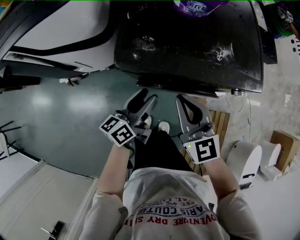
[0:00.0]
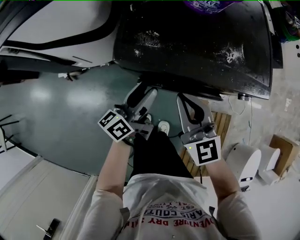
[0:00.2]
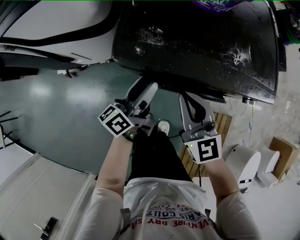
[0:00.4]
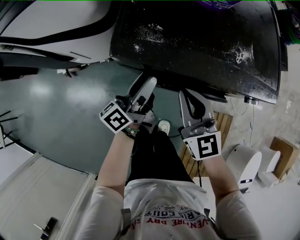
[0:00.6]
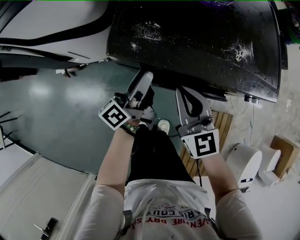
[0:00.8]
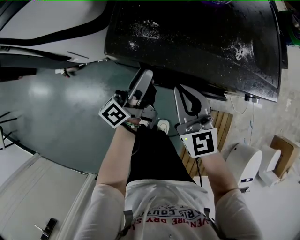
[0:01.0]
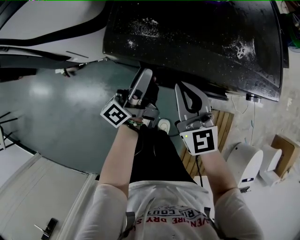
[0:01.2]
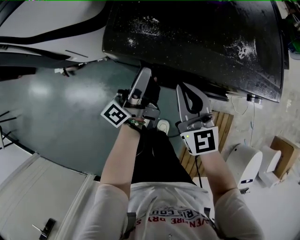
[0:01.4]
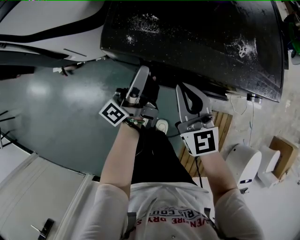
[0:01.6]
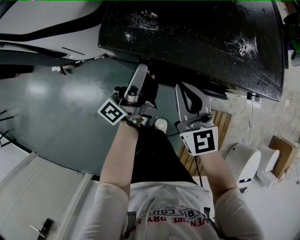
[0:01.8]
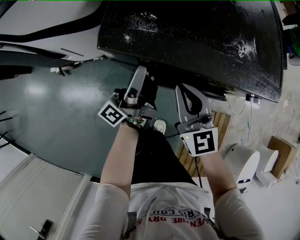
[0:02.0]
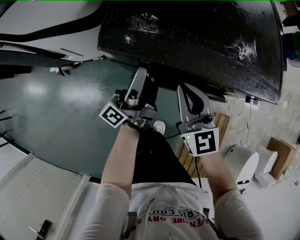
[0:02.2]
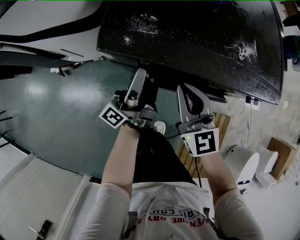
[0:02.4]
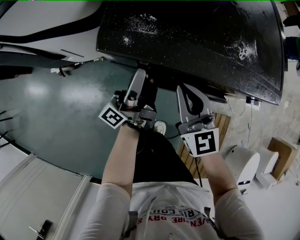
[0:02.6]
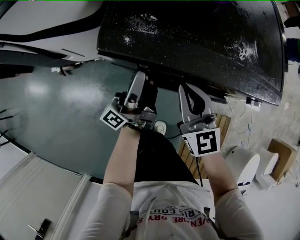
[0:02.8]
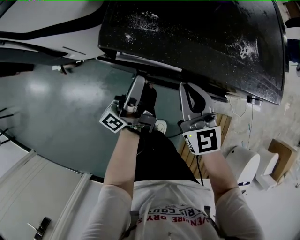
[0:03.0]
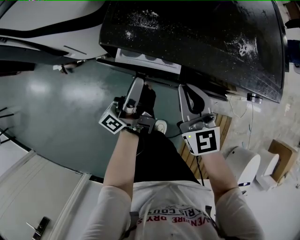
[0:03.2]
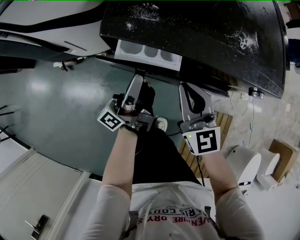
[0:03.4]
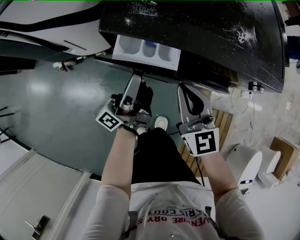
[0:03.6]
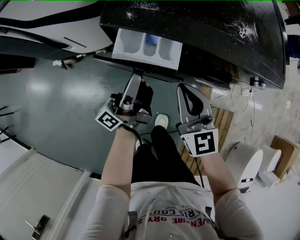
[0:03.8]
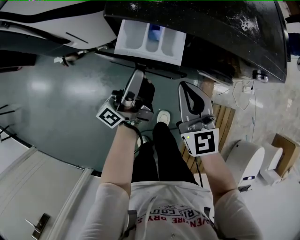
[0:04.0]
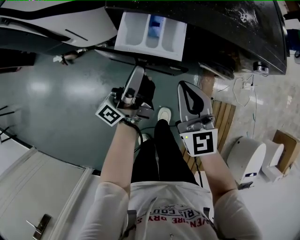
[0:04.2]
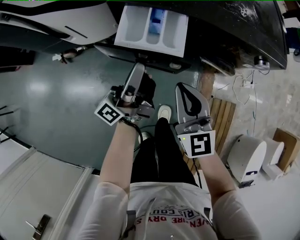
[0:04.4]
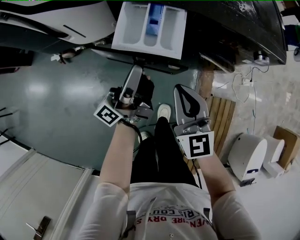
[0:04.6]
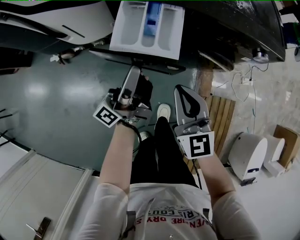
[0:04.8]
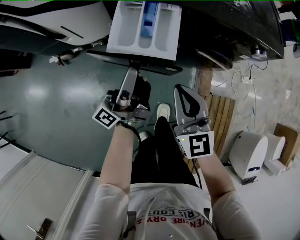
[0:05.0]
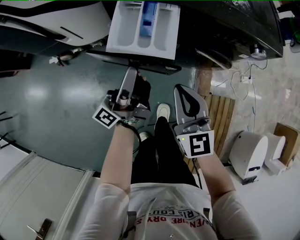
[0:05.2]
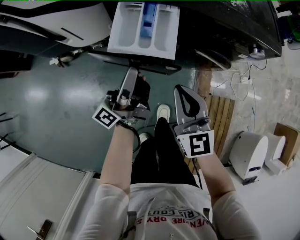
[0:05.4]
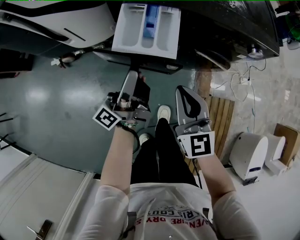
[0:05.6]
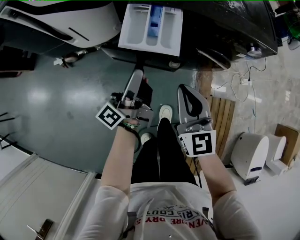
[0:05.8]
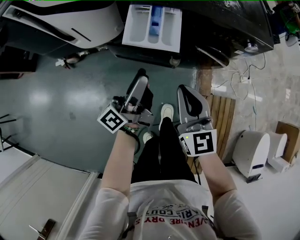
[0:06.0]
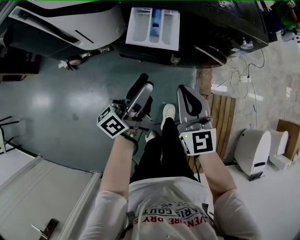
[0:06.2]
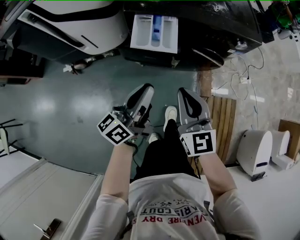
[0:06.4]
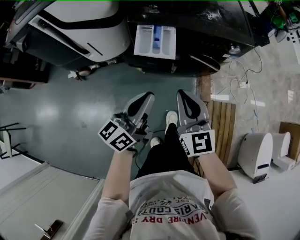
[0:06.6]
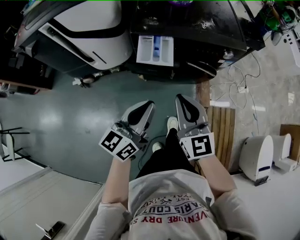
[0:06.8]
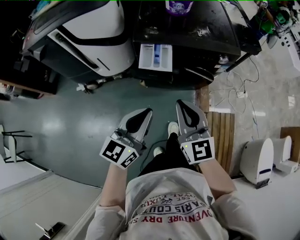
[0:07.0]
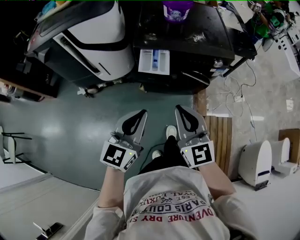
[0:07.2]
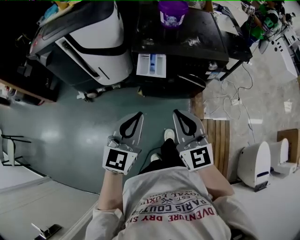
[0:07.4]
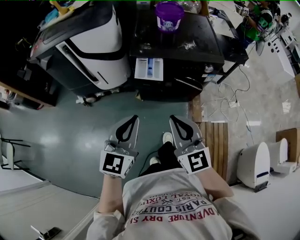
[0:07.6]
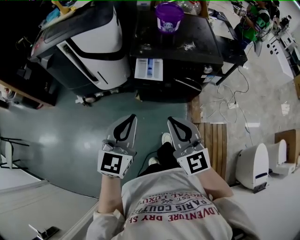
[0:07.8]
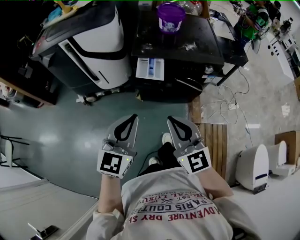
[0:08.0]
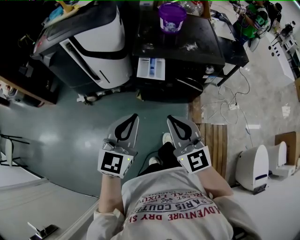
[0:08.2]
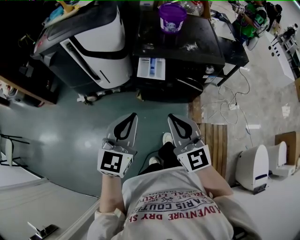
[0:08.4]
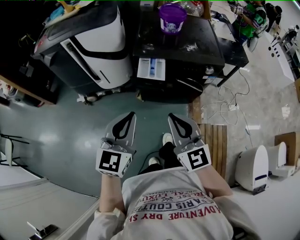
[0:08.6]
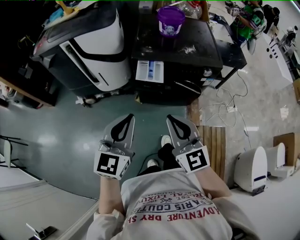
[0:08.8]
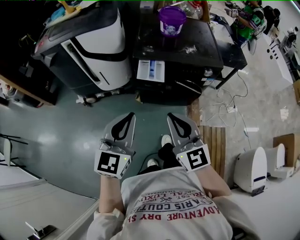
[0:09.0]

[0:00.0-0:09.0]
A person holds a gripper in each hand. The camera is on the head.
0:00.0 to 0:01.6: The right gripper goes about 10 cm downward. Meanwhile the left gripper travels forward by roughly 5 cm, and rotates some 40 degrees.
0:01.6 to 0:03.0: There are only small adjustments of the grippers.
0:03.0 to 0:04.4: The grippers both shift backward by some 10 cm.
0:04.4 to 0:06.0: Both grippers travel together backward, some 5 cm. The left gripper opens its fingers.
0:06.0 to 0:07.6: The grippers both shift upward and backward by some 30 cm. The left gripper twists approximately 80 degrees clockwise, seen from behind, and closes.
0:07.6 to 0:09.0: The grippers stay close to where they were, moving slightly.

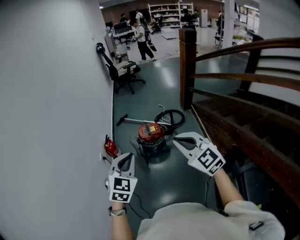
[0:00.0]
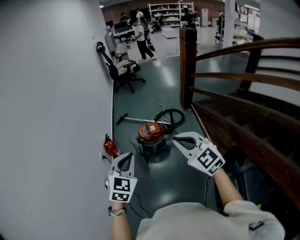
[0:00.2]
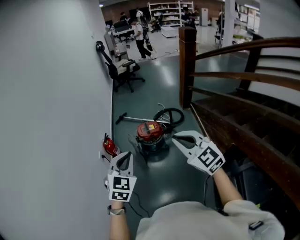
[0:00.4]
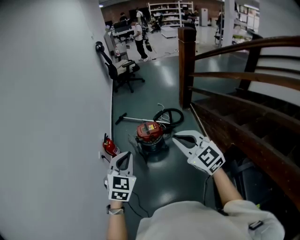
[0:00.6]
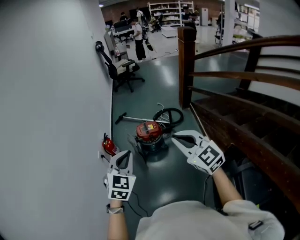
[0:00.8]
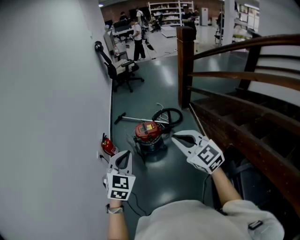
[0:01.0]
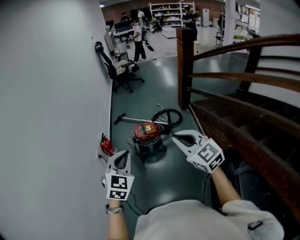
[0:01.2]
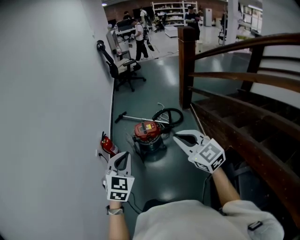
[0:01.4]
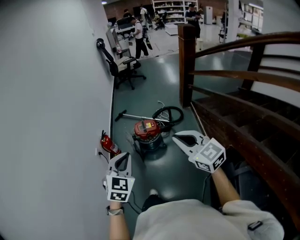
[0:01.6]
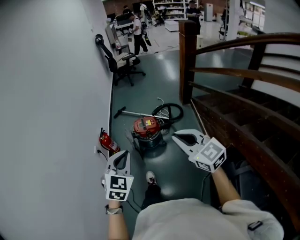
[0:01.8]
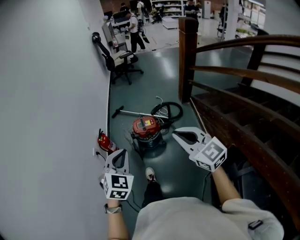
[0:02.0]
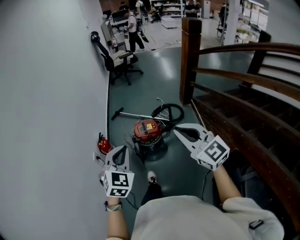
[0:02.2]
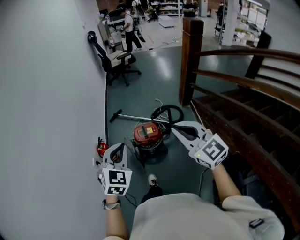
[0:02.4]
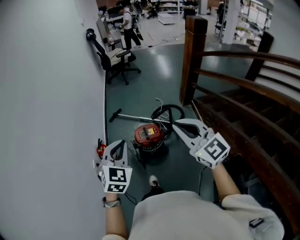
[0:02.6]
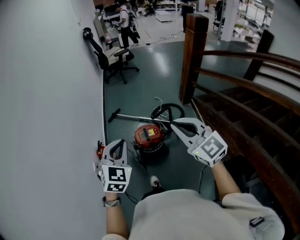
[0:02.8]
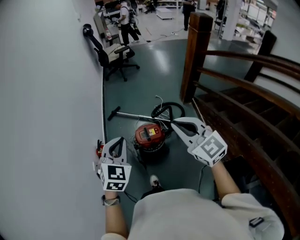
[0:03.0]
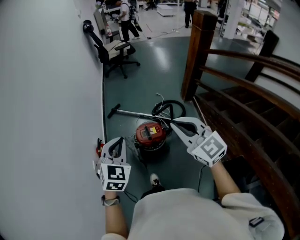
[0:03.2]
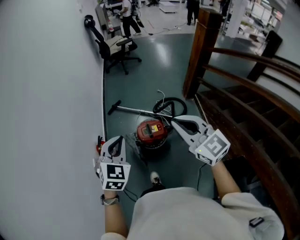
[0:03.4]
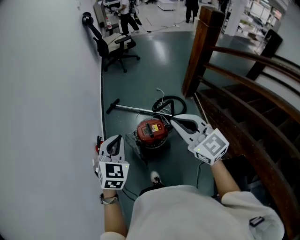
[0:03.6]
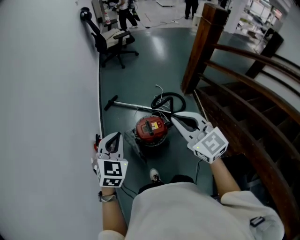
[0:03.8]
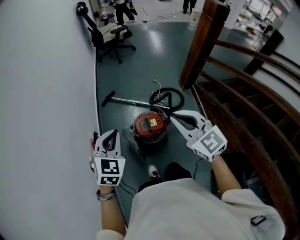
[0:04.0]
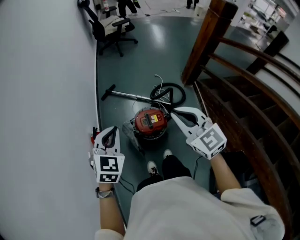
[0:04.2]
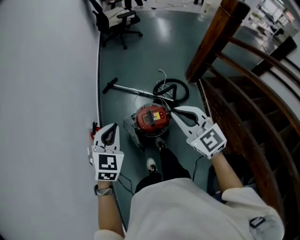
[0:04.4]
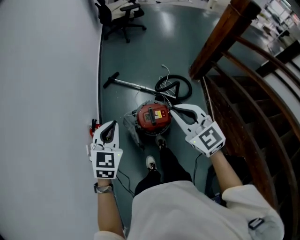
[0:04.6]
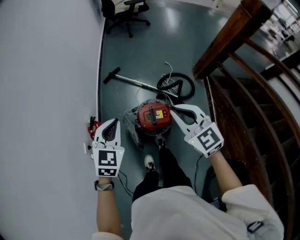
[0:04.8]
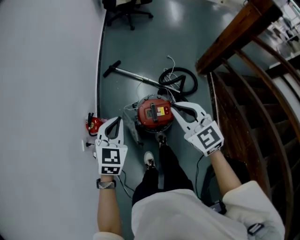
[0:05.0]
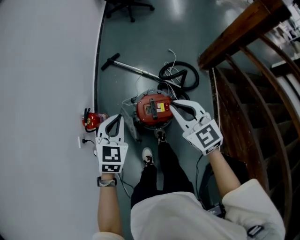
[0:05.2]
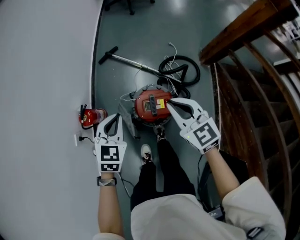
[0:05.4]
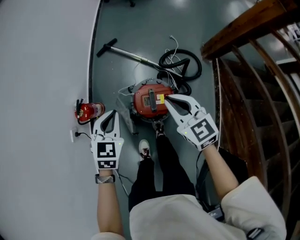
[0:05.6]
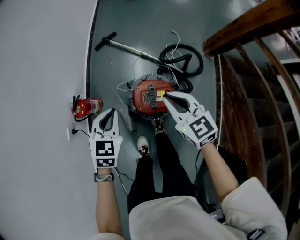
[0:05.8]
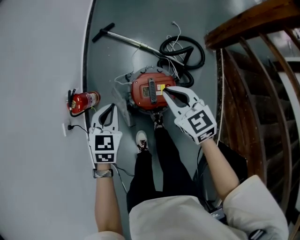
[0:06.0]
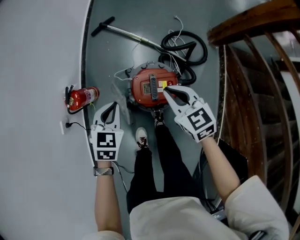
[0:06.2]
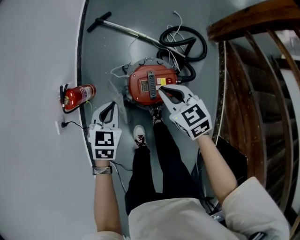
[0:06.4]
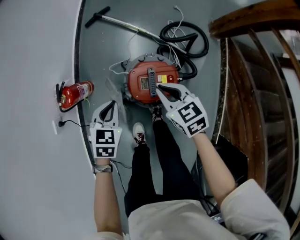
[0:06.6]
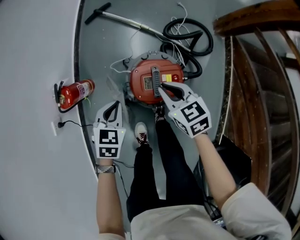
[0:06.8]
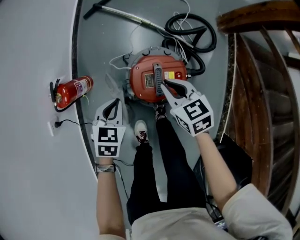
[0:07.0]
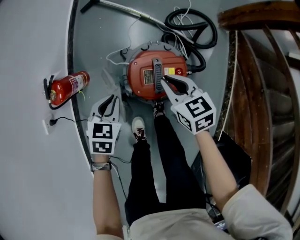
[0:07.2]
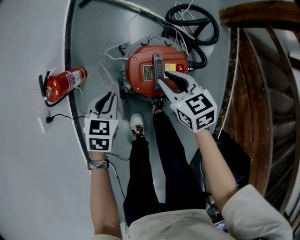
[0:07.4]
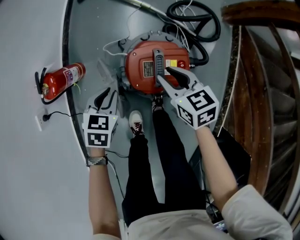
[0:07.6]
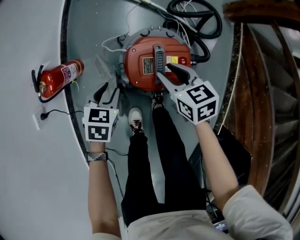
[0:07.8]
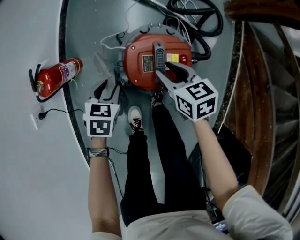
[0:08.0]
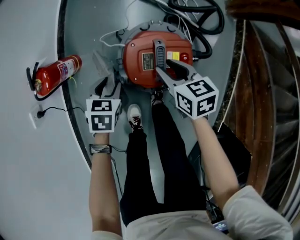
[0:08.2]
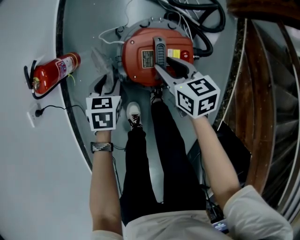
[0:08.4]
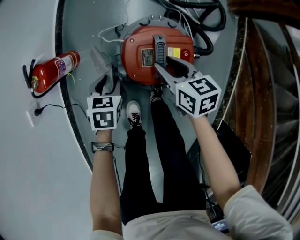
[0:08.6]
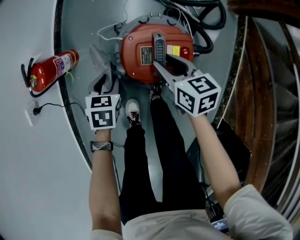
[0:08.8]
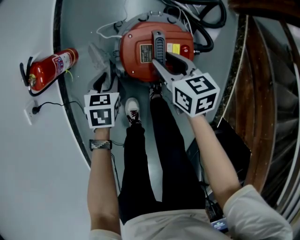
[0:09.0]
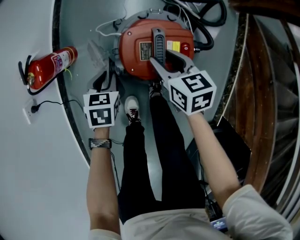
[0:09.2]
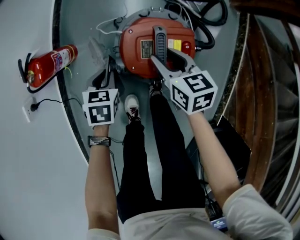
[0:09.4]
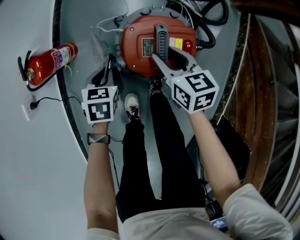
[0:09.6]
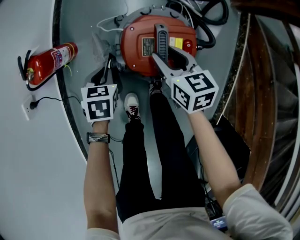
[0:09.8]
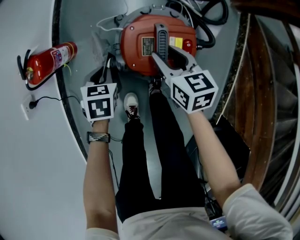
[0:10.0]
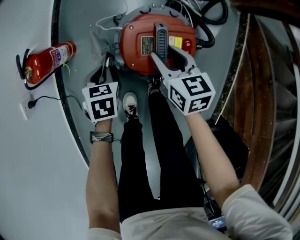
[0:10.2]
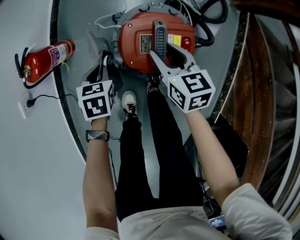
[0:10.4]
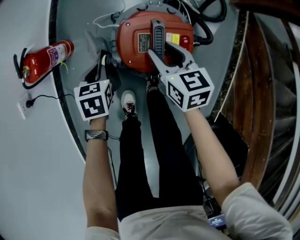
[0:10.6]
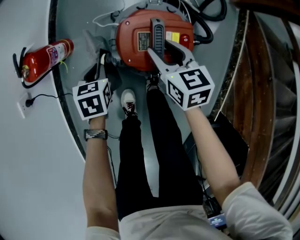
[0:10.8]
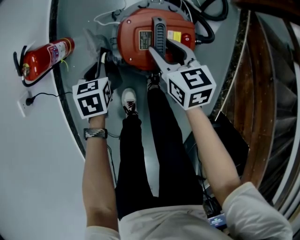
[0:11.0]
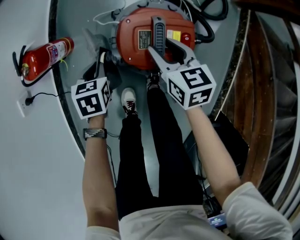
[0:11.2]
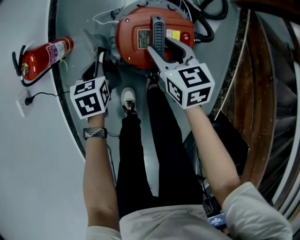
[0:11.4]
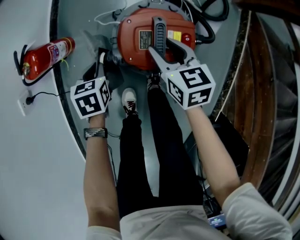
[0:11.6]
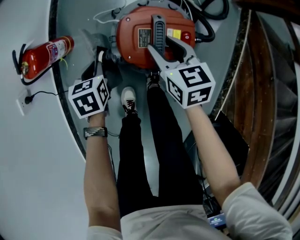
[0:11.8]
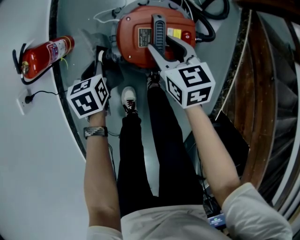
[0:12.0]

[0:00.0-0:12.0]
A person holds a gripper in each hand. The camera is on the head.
0:00.0 to 0:01.6: The right gripper heads to the right, covering about 5 cm.
0:01.6 to 0:03.0: The grippers both shift forward by roughly 30 cm.
0:03.0 to 0:04.4: The right gripper goes roughly 20 cm forward and downward. Meanwhile the left gripper travels forward, downward and to the left by about 20 cm.
0:04.4 to 0:06.0: The grippers both shift downward by about 30 cm. The right gripper rotates some 20 degrees. The left gripper rotates approximately 20 degrees.
0:06.0 to 0:07.6: The grippers both shift downward by roughly 25 cm. The right gripper changes its angle by some 20 degrees, and opens up.
0:07.6 to 0:09.0: The grippers both shift downward by some 5 cm.
0:09.0 to 0:10.4: The left gripper closes.
0:10.4 to 0:12.0: There are only small adjustments of the grippers.

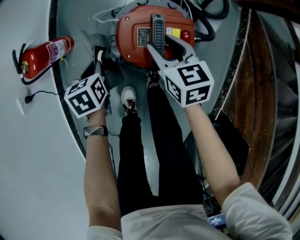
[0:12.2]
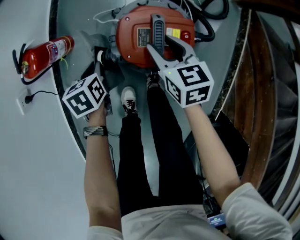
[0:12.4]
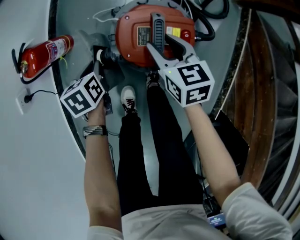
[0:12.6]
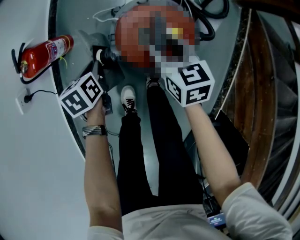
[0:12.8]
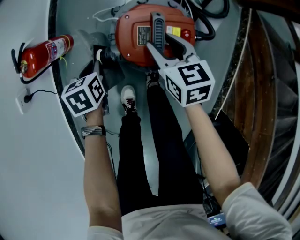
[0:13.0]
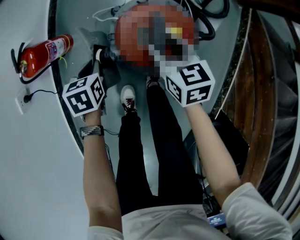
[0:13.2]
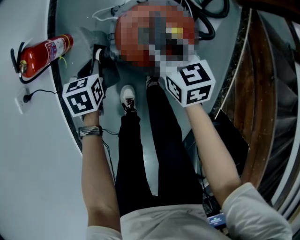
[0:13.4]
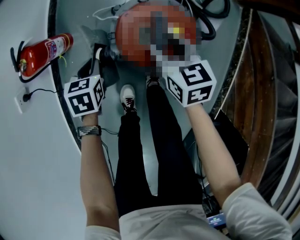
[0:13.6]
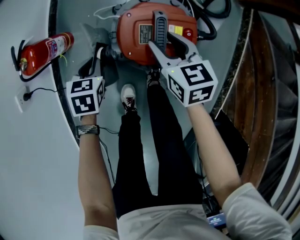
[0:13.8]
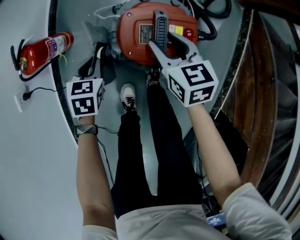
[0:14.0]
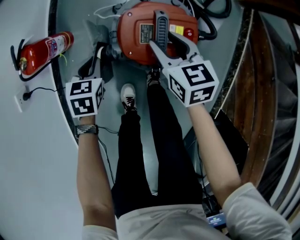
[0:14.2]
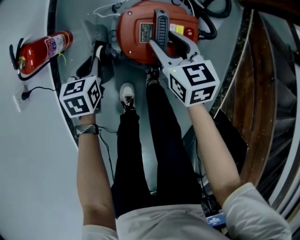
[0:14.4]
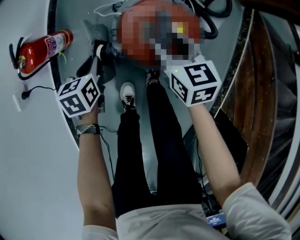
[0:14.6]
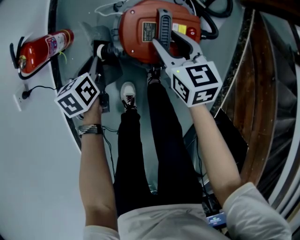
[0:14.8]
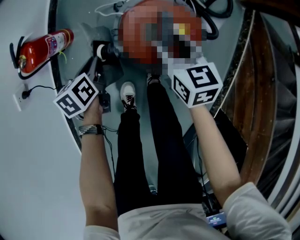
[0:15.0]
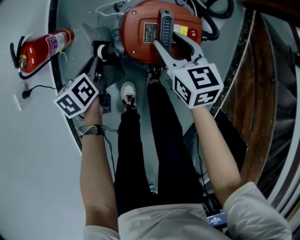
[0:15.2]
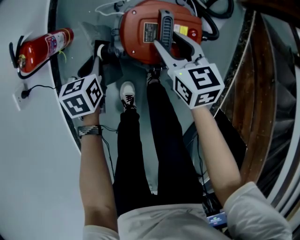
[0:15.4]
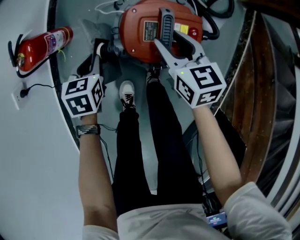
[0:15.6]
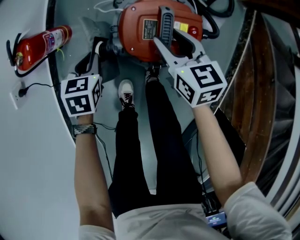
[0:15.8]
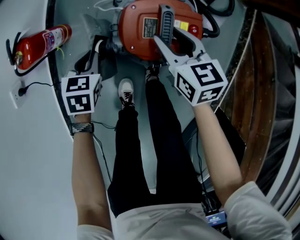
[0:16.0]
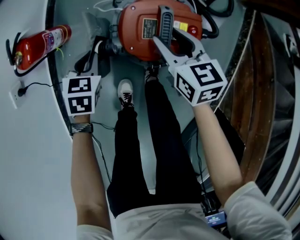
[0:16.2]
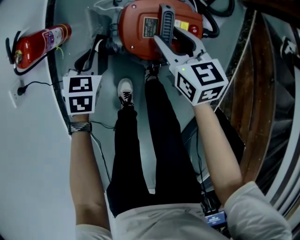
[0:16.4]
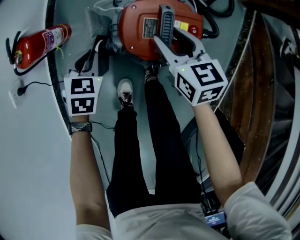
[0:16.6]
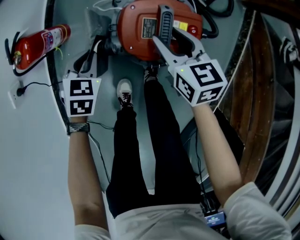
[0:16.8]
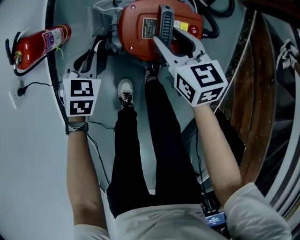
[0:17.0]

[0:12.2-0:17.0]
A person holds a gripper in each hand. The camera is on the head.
0:12.2 to 0:13.8: The left gripper turns by approximately 20 degrees.
0:15.4 to 0:17.0: The left gripper swivels about 40 degrees.
